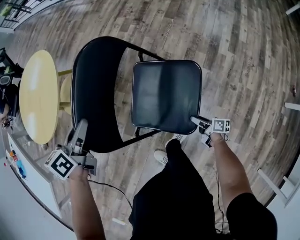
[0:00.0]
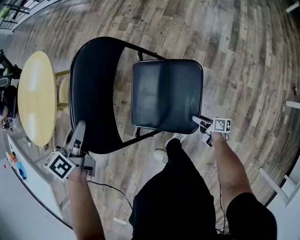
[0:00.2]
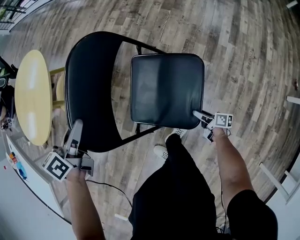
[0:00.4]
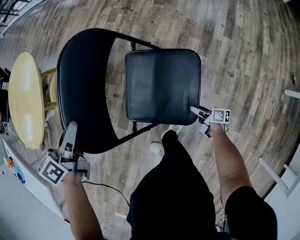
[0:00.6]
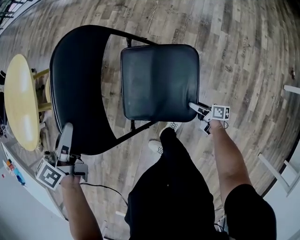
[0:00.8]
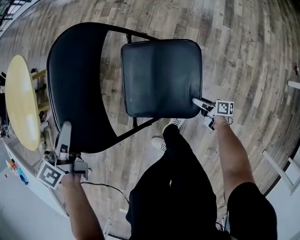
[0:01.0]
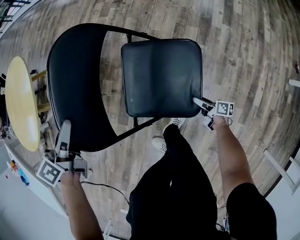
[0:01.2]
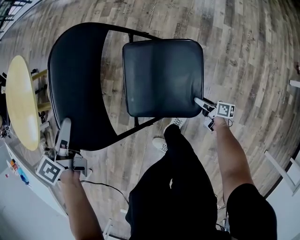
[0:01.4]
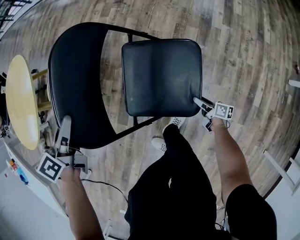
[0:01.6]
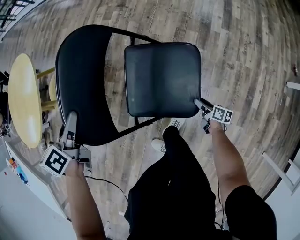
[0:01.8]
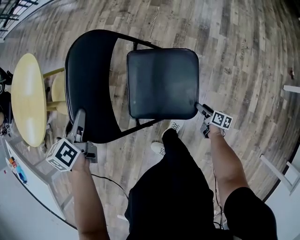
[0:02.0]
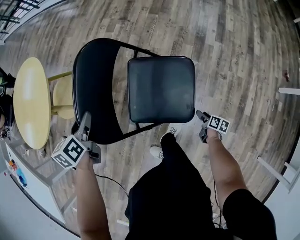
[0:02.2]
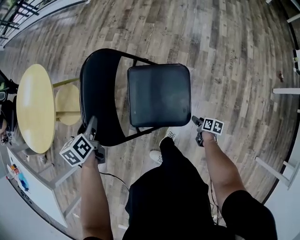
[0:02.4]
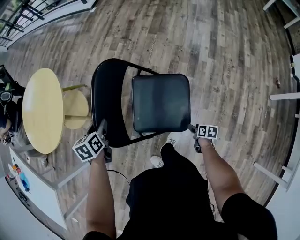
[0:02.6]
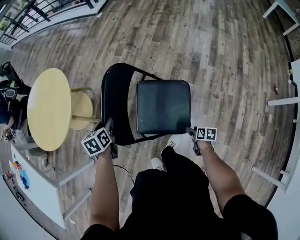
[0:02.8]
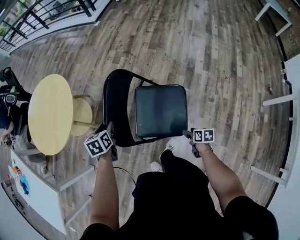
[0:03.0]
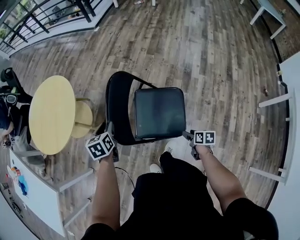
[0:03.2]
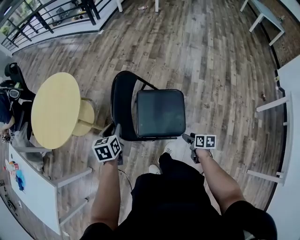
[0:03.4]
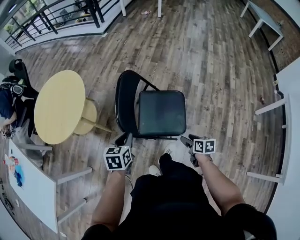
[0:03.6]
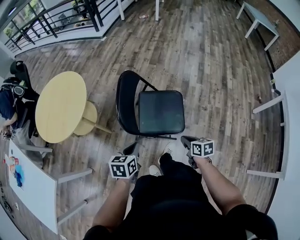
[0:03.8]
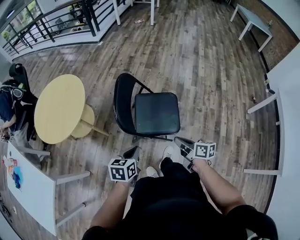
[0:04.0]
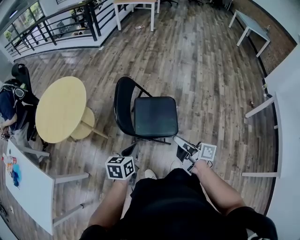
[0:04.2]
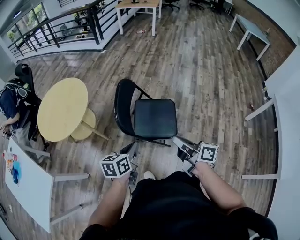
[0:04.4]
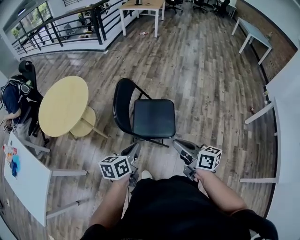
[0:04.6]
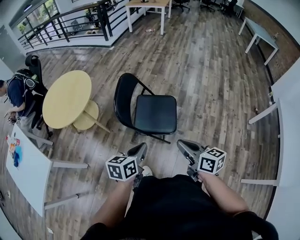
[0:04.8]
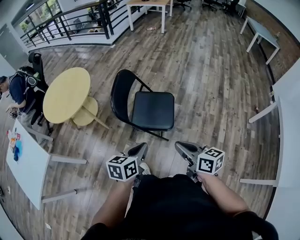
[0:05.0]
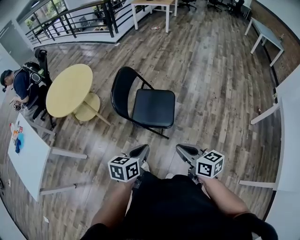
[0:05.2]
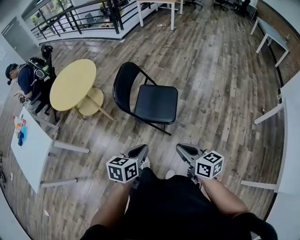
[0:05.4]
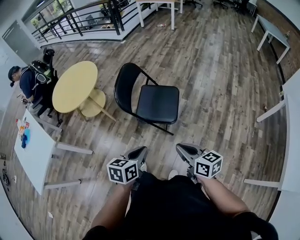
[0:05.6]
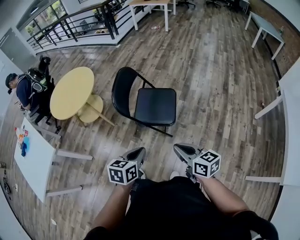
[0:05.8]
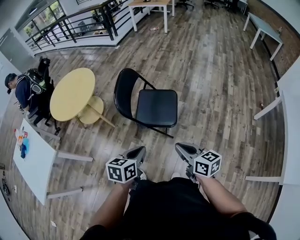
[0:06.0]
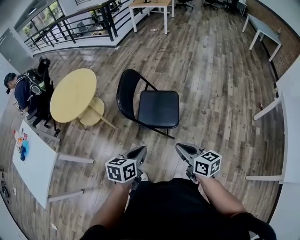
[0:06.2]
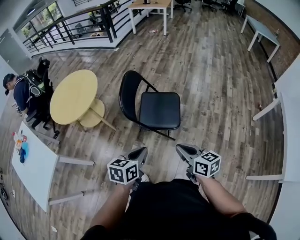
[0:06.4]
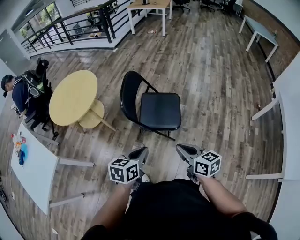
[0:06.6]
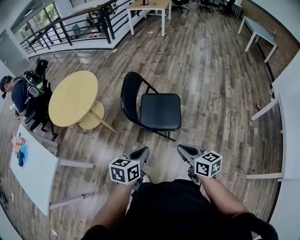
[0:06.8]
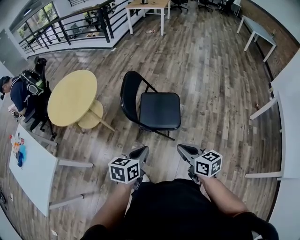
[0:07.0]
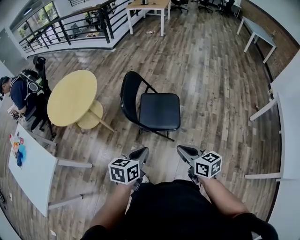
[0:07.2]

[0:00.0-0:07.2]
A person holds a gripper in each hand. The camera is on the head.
0:00.0 to 0:01.4: The right gripper shifts about 10 cm downward and to the right. The left gripper shifts by about 5 cm.
0:01.4 to 0:02.8: The left gripper changes its angle by roughly 30 degrees; the right gripper goes some 15 cm upward, and tips its fingers downward by some 30 degrees.
0:02.8 to 0:04.4: The right gripper is displaced upward by some 40 cm, points its fingers about 50 degrees further upward, and closes its fingers; the left gripper heads backward and upward, covering approximately 30 cm, swivels some 30 degrees, and closes up.
0:04.4 to 0:05.8: Both grippers move backward and to the right, approximately 20 cm. The right gripper rotates roughly 30 degrees.
0:05.8 to 0:07.2: The grippers both shift to the left by some 10 cm.

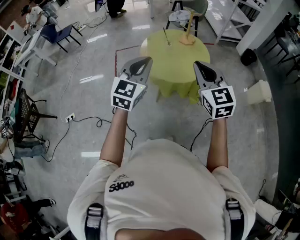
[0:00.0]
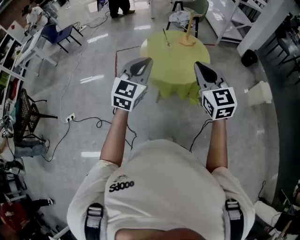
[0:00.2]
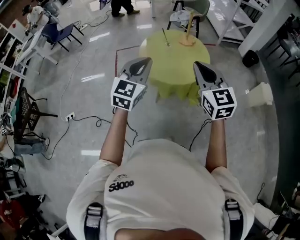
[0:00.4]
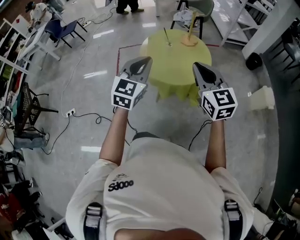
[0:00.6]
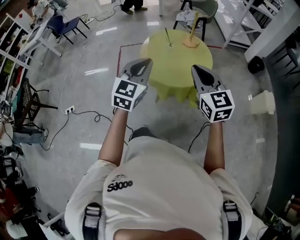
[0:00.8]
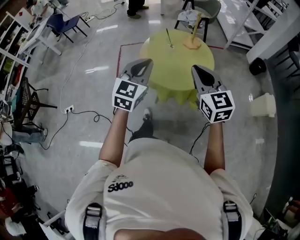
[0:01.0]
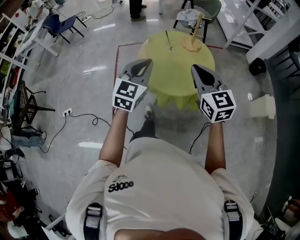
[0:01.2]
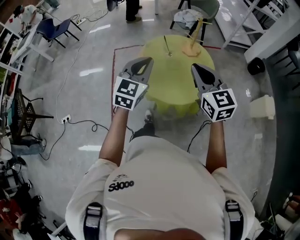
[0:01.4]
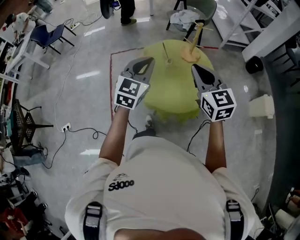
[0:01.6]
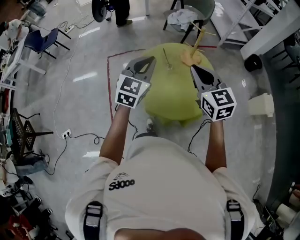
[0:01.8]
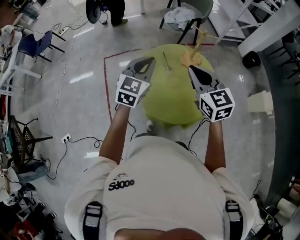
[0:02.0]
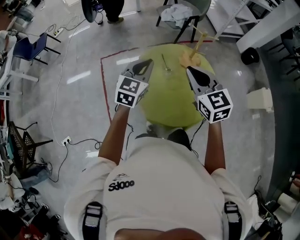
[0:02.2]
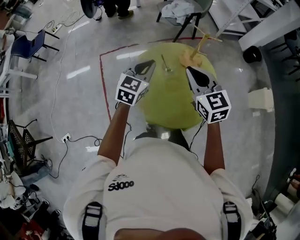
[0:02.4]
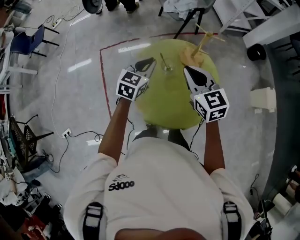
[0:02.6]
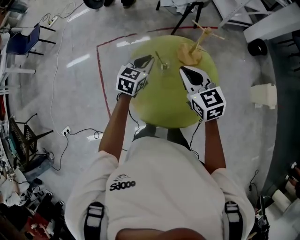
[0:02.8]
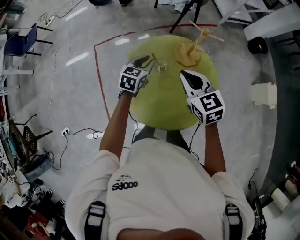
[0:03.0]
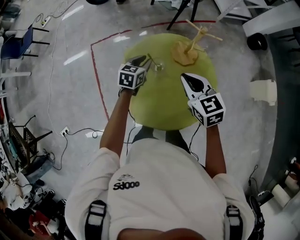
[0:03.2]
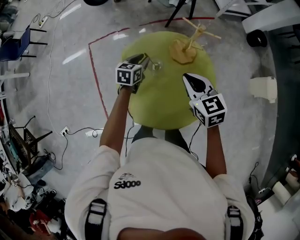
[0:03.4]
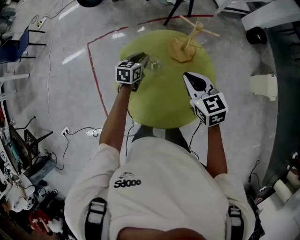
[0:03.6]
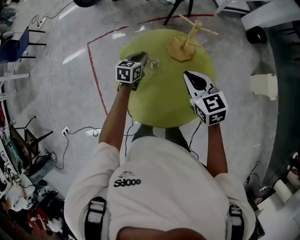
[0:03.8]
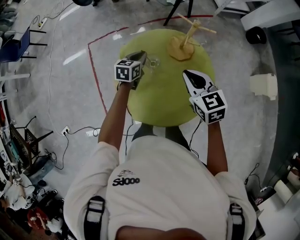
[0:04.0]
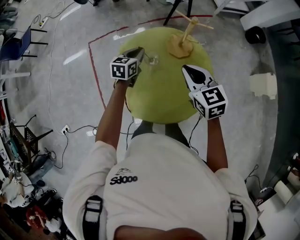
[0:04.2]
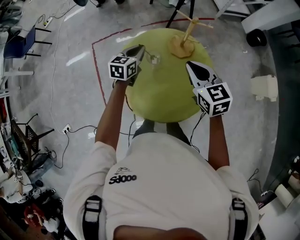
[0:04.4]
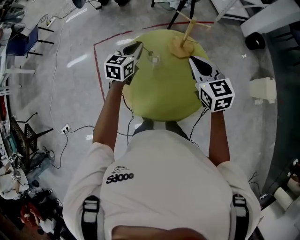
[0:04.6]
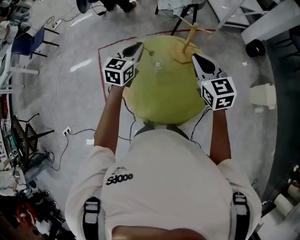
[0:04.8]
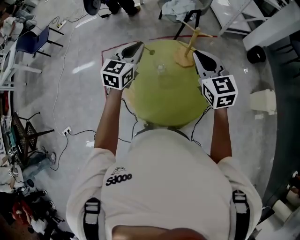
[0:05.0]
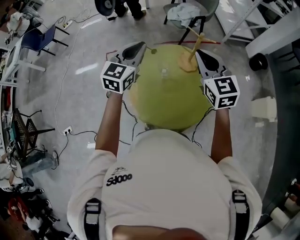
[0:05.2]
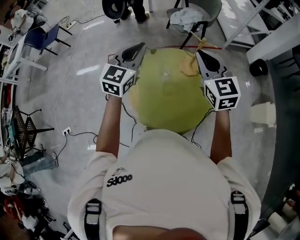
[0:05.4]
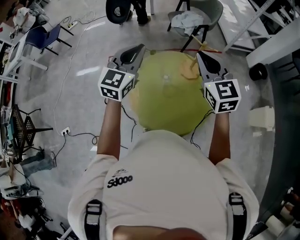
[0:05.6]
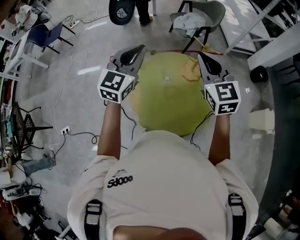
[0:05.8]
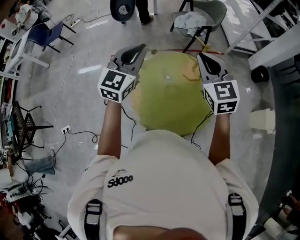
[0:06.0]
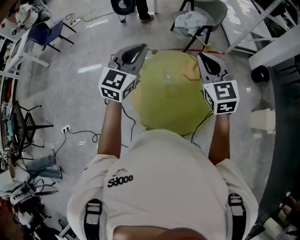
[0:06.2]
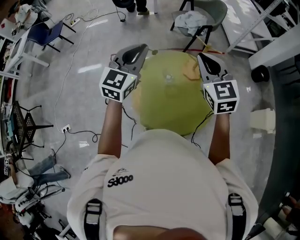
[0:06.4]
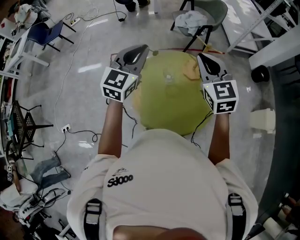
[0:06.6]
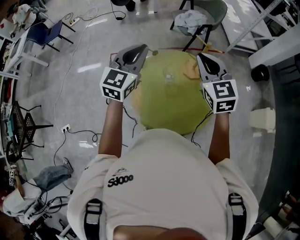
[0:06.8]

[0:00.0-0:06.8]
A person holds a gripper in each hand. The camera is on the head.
0:00.0 to 0:01.4: Both grippers move forward, some 20 cm.
0:01.4 to 0:02.8: The right gripper moves forward, approximately 30 cm. Meanwhile the left gripper goes some 40 cm forward and downward, and swivels some 30 degrees.
0:02.8 to 0:04.0: The left gripper moves downward and forward, approximately 15 cm, while the right gripper moves to the right, about 5 cm.
0:04.0 to 0:05.4: The left gripper is displaced upward by approximately 30 cm, and swivels approximately 40 degrees, while the right gripper shifts approximately 20 cm upward, and turns by roughly 30 degrees.
0:05.4 to 0:06.8: The grippers make only small movements.

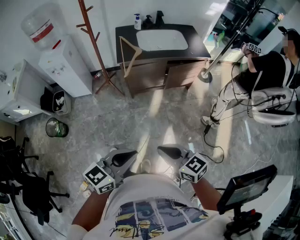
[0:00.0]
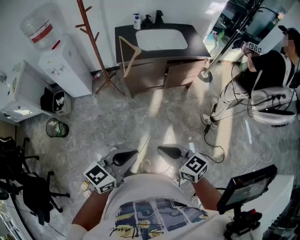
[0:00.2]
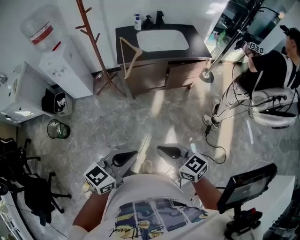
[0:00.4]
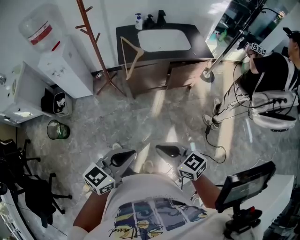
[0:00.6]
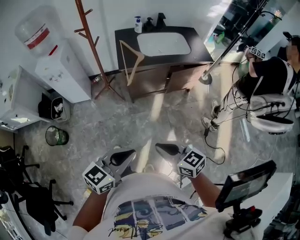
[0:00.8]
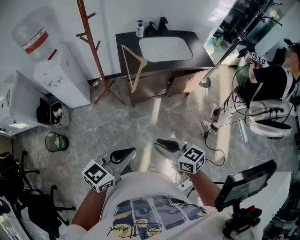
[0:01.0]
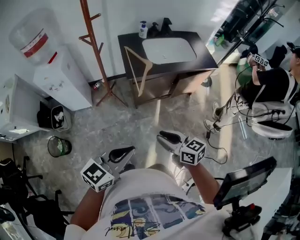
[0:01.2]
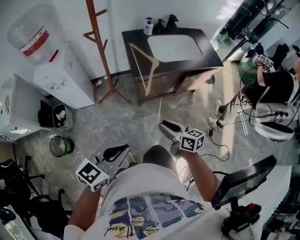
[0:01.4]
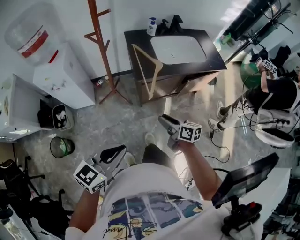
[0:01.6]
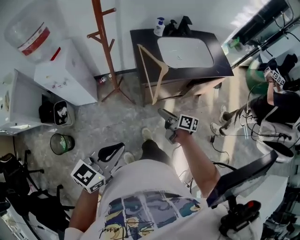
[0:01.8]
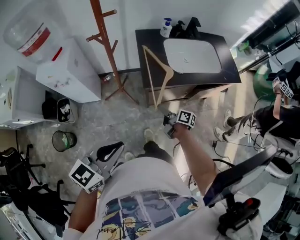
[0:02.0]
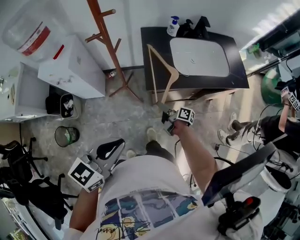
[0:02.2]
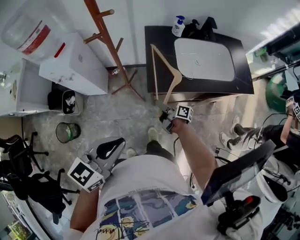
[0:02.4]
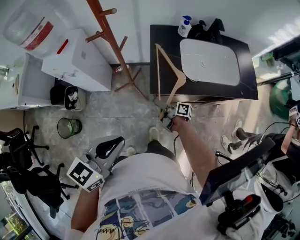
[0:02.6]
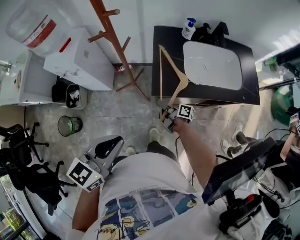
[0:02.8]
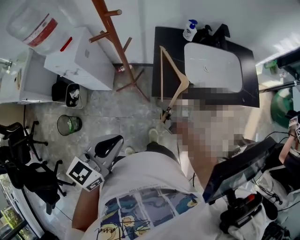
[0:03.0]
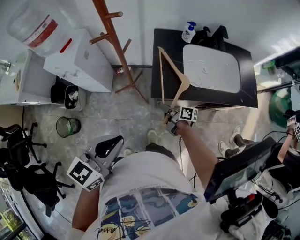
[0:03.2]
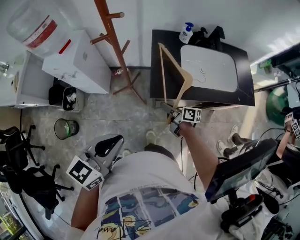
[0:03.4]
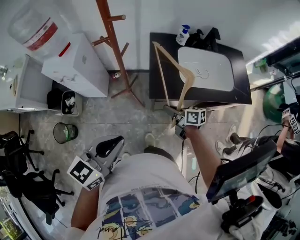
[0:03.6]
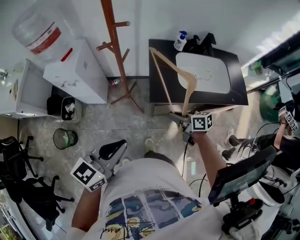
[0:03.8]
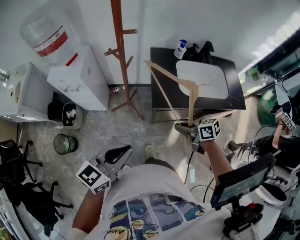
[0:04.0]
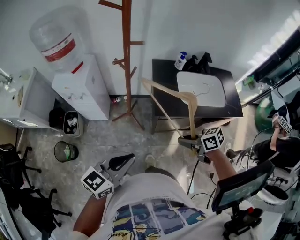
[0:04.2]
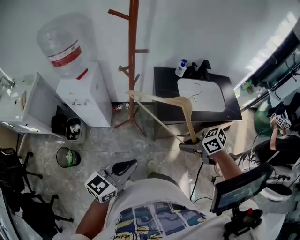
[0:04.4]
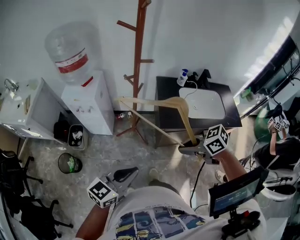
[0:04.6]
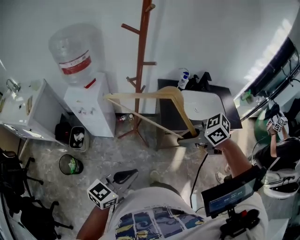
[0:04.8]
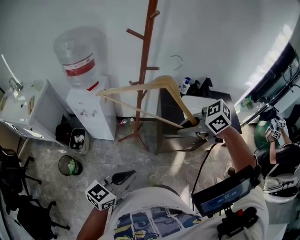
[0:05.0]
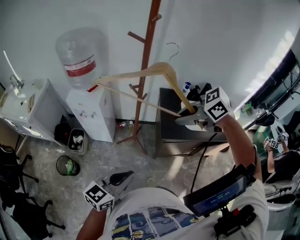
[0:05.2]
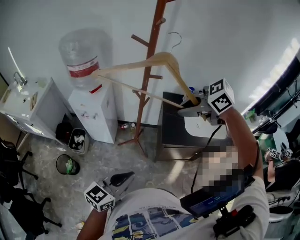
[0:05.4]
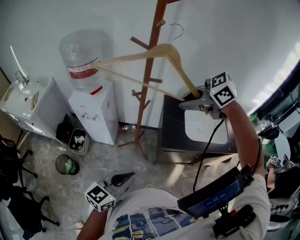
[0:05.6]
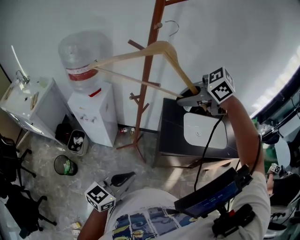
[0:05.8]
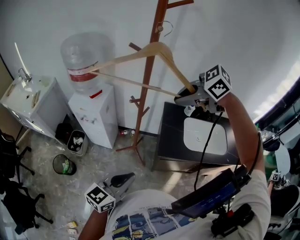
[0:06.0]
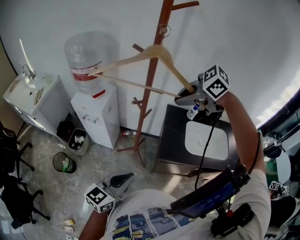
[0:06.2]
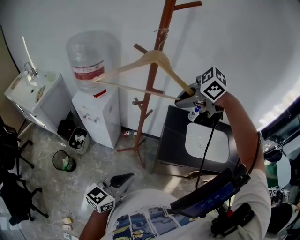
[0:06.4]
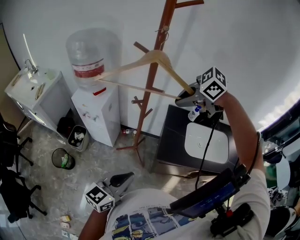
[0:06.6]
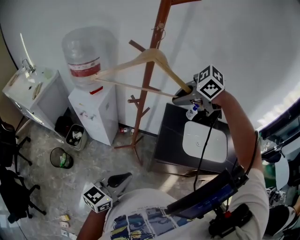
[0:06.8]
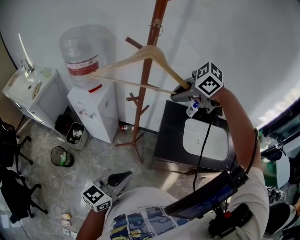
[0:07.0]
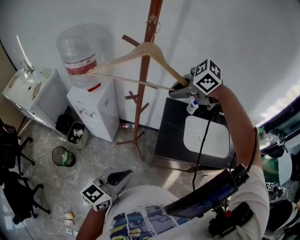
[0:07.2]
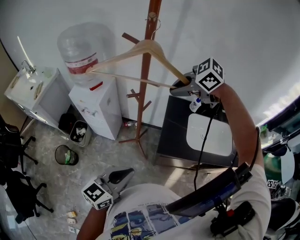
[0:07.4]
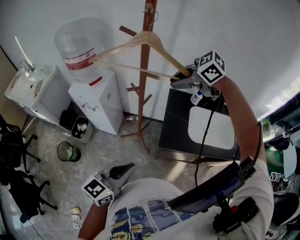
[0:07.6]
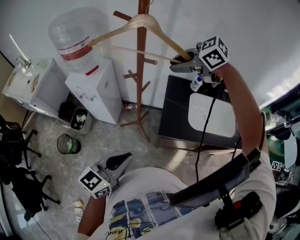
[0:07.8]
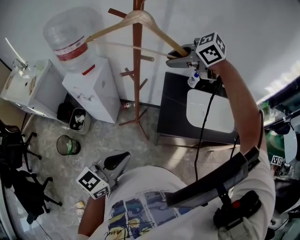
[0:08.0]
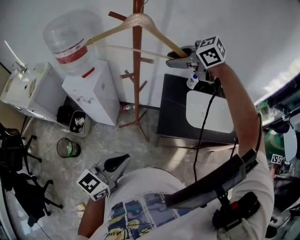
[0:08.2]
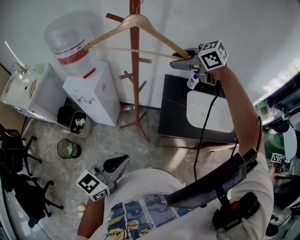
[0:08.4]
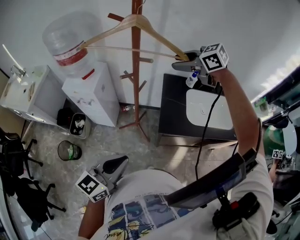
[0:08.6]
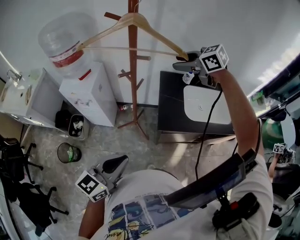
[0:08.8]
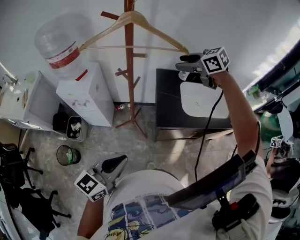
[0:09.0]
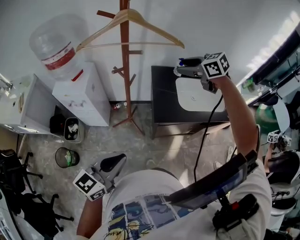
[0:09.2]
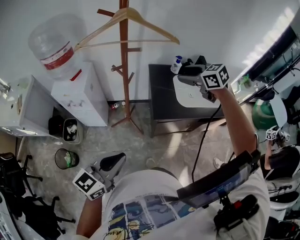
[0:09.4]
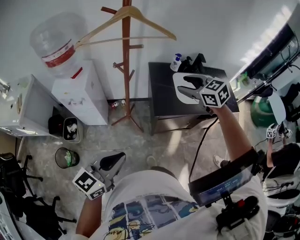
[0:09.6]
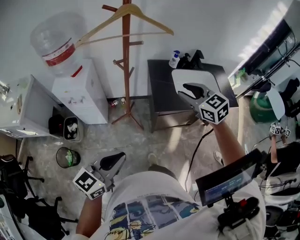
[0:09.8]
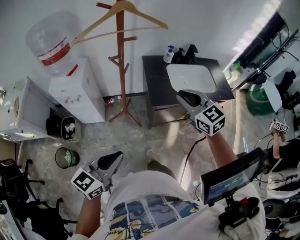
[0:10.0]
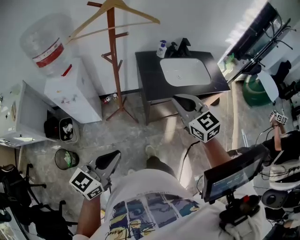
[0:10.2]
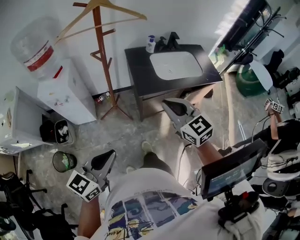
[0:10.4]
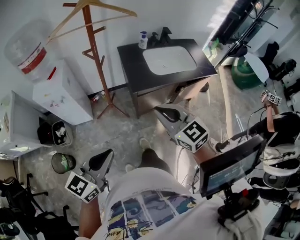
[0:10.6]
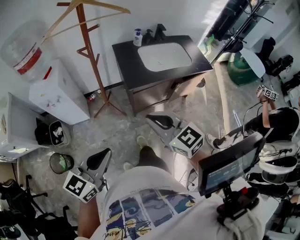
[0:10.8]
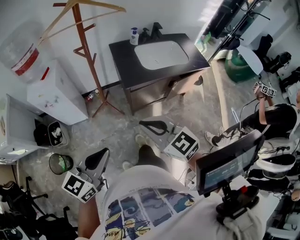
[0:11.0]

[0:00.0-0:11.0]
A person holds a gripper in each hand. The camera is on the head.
0:00.0 to 0:01.6: The right gripper shifts about 35 cm forward and to the left, changes its angle by some 40 degrees, and opens. Meanwhile the left gripper heads to the left and forward, covering about 30 cm.
0:01.6 to 0:03.2: The left gripper goes some 20 cm forward, and turns by some 20 degrees; the right gripper travels forward and downward by about 25 cm, swivels about 30 degrees, and closes up.
0:03.2 to 0:04.8: The left gripper shifts by about 15 cm. Meanwhile the right gripper shifts about 30 cm upward, and changes its angle by approximately 70 degrees.
0:04.8 to 0:06.2: The left gripper changes place by roughly 10 cm; the right gripper ends up approximately 30 cm from where it was, and turns by roughly 30 degrees.
0:06.2 to 0:07.8: The right gripper changes place by some 10 cm.
0:07.8 to 0:09.4: The left gripper ends up roughly 10 cm from where it was, while the right gripper shifts by about 15 cm, swivels roughly 40 degrees, and opens its fingers.
0:09.4 to 0:11.0: The left gripper moves backward, roughly 10 cm. The right gripper is displaced backward by some 40 cm, turns by roughly 20 degrees, and closes.
